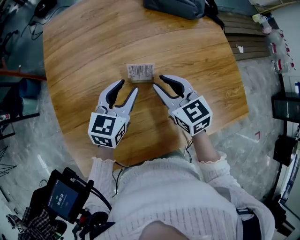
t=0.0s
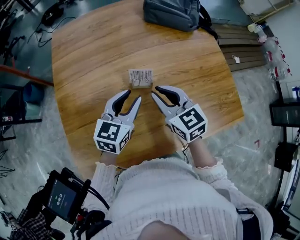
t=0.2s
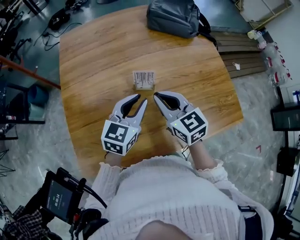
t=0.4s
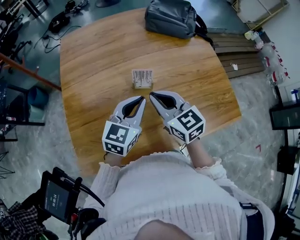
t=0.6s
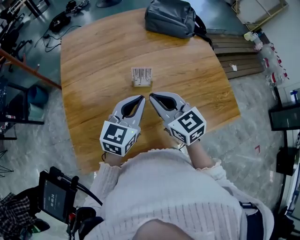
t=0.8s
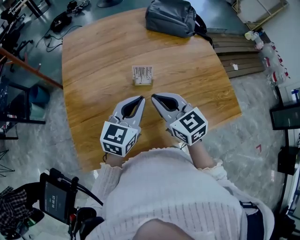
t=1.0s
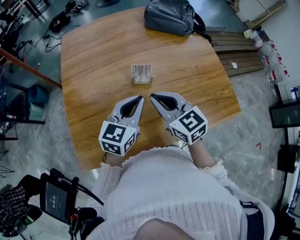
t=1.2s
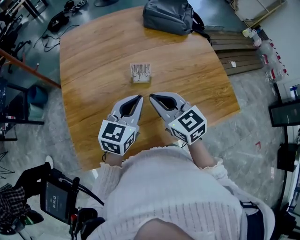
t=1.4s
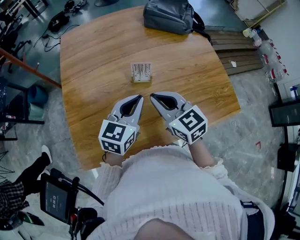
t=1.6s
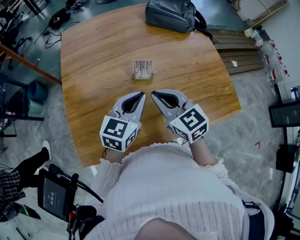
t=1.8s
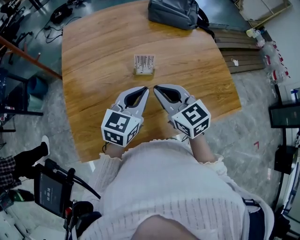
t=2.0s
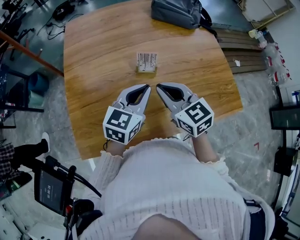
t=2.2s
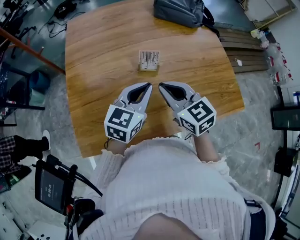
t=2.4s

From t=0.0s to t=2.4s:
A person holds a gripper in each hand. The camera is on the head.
From t=0.0s to t=1.2s: The grippers both shift backward and upward by some 10 cm. The left gripper closes up; the right gripper closes its fingers.
From t=1.2s to t=2.4s: Neither gripper changes place.

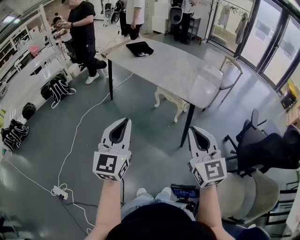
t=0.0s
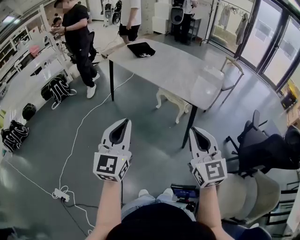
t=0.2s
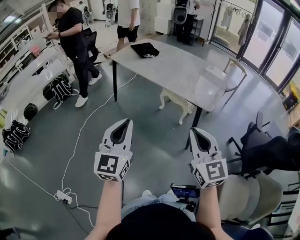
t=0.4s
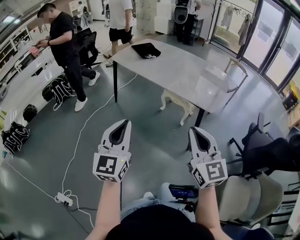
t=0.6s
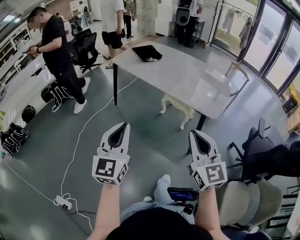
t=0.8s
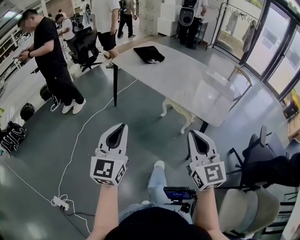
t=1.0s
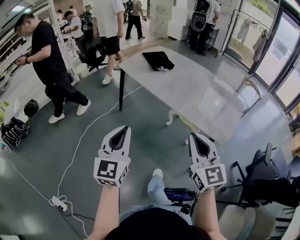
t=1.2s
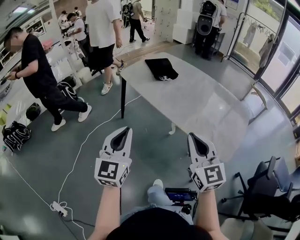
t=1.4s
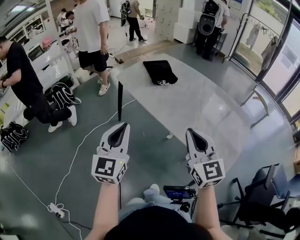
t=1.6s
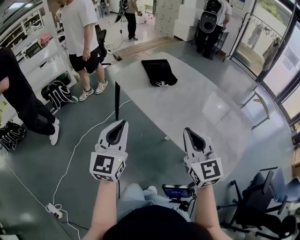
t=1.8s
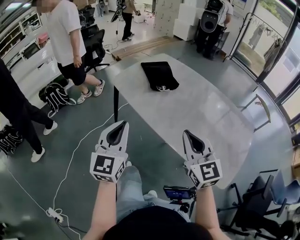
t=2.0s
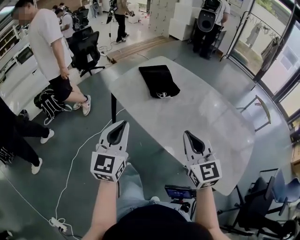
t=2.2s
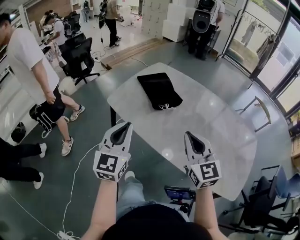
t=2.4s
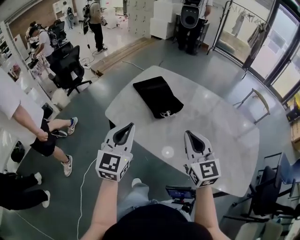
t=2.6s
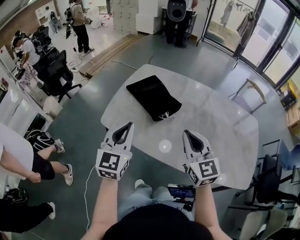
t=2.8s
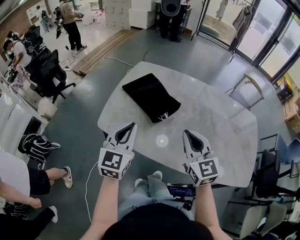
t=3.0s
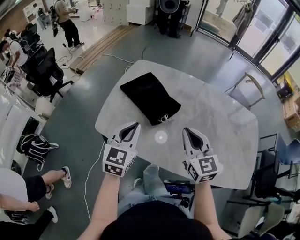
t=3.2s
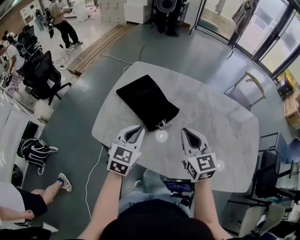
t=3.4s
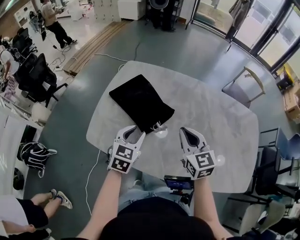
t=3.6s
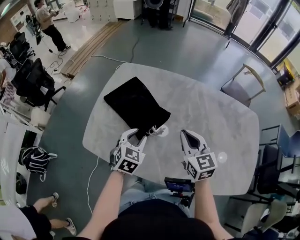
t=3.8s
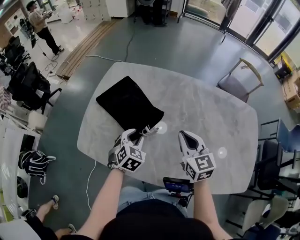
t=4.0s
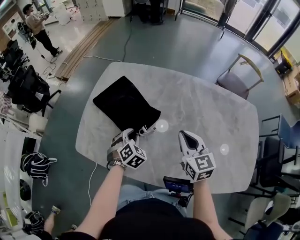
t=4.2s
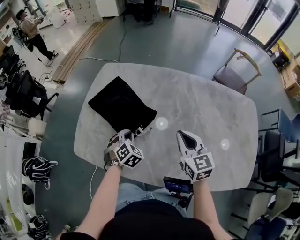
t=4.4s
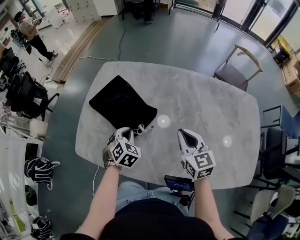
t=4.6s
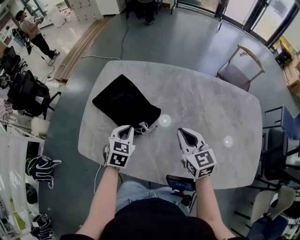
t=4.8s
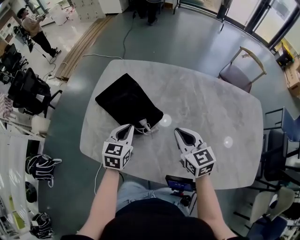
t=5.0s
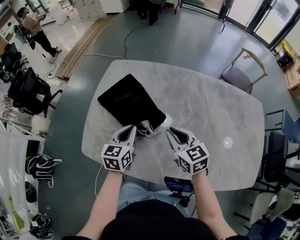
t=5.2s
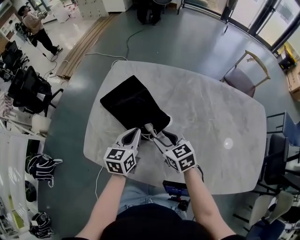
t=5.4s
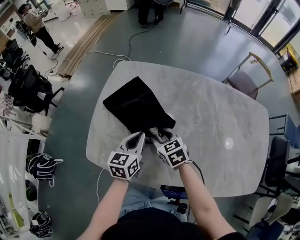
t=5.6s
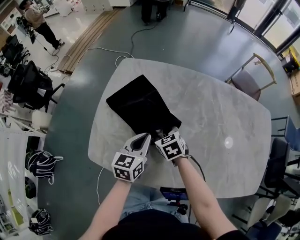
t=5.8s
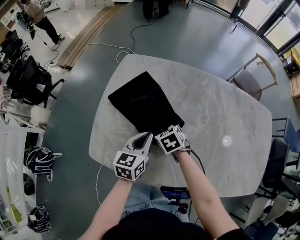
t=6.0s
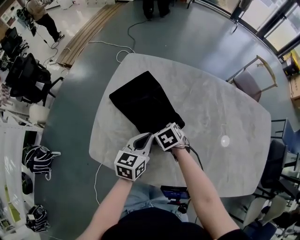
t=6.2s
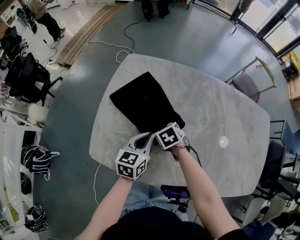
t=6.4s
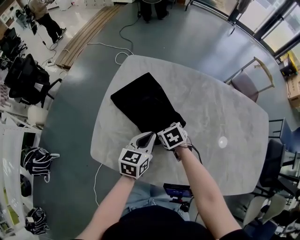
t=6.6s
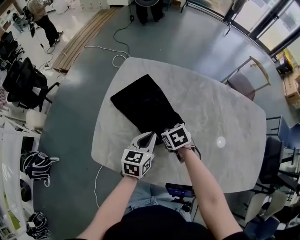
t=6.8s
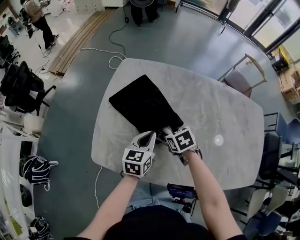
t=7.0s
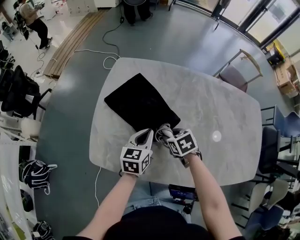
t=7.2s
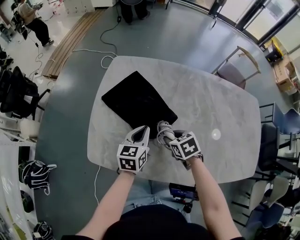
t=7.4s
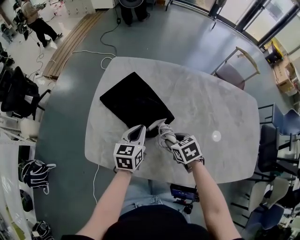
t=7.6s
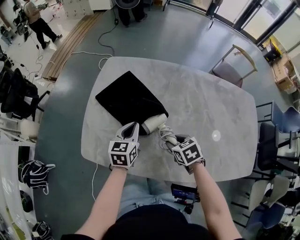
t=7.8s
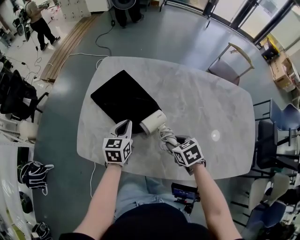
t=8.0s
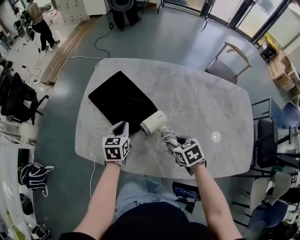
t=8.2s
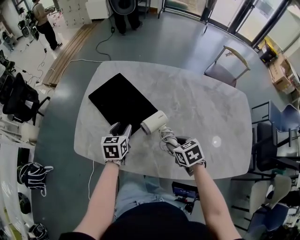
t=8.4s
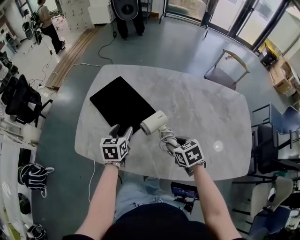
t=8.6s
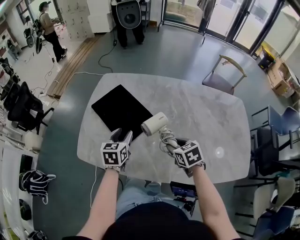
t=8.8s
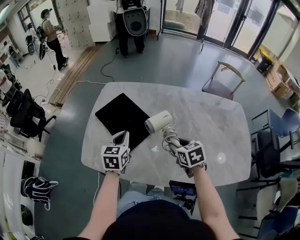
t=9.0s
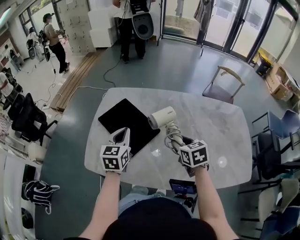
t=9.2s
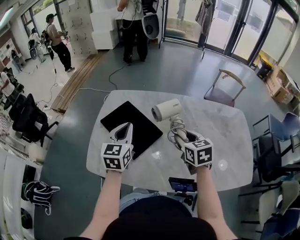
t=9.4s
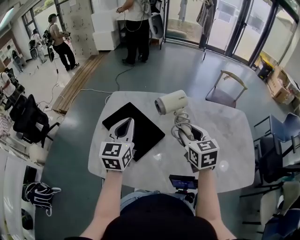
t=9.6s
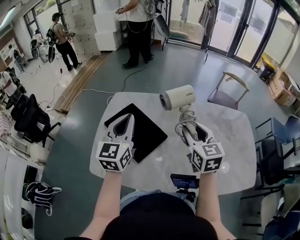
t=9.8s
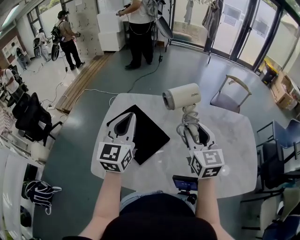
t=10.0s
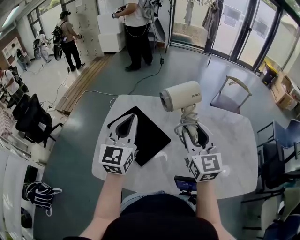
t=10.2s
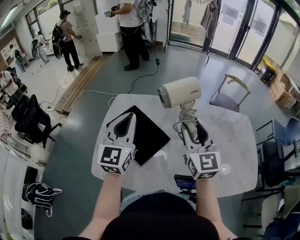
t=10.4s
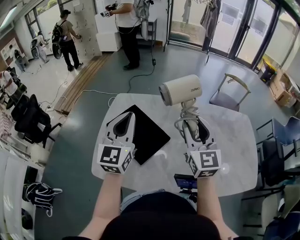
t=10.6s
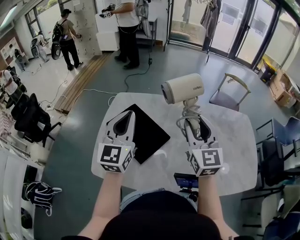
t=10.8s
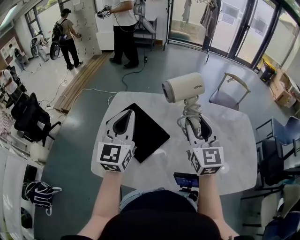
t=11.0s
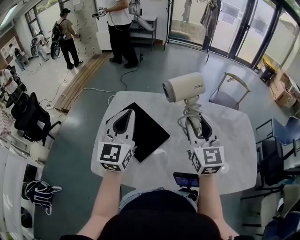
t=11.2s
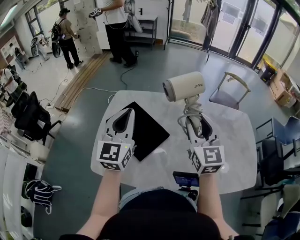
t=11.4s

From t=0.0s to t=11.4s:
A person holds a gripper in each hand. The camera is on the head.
From t=0.0s to t=1.4s: The two grippers go some 30 cm forward.
From t=1.4s to t=2.8s: The two grippers travel together, forward, approximately 40 cm. The left gripper changes its angle by about 20 degrees. The right gripper turns by about 20 degrees.
From t=2.8s to t=4.2s: The left gripper shifts approximately 30 cm downward and forward, points its fingers approximately 50 degrees further downward, and opens up, while the right gripper is displaced forward, downward and to the right by approximately 20 cm, and turns by about 20 degrees.
From t=4.2s to t=5.6s: The left gripper moves upward, roughly 10 cm, rolls counterclockwise, seen from behind, by some 50 degrees, and closes. The right gripper is displaced to the left and downward by approximately 20 cm, changes its angle by approximately 30 degrees, and opens its fingers.
From t=5.6s to t=7.2s: The right gripper turns by approximately 20 degrees.
From t=7.2s to t=8.6s: The left gripper opens its fingers; the right gripper is displaced to the right and backward by about 15 cm.
From t=8.6s to t=10.0s: The left gripper is displaced upward by some 25 cm, angles its fingers upward, by roughly 40 degrees, and closes its fingers; the right gripper heads upward and forward, covering roughly 25 cm, and points its fingers about 40 degrees further upward.
From t=10.0s to t=11.4s: The grippers make only small movements.

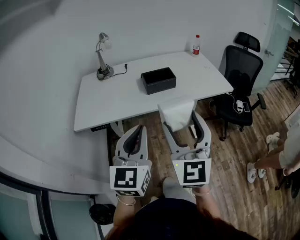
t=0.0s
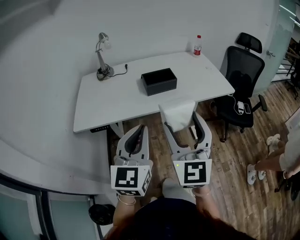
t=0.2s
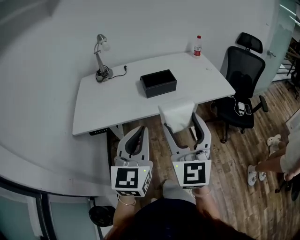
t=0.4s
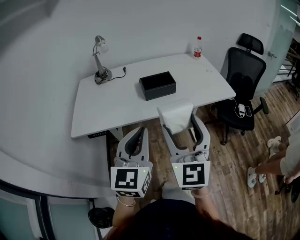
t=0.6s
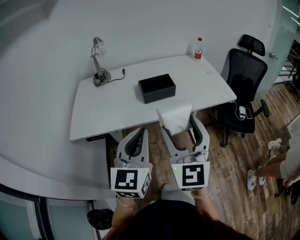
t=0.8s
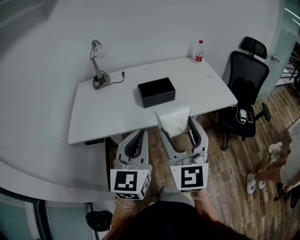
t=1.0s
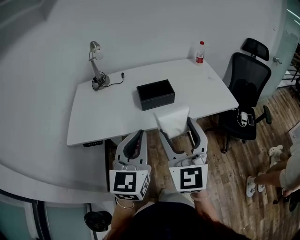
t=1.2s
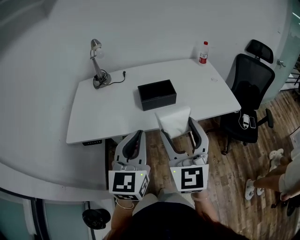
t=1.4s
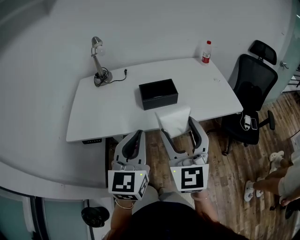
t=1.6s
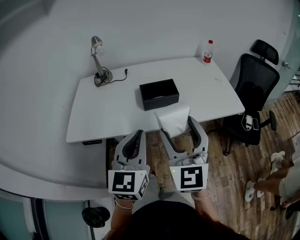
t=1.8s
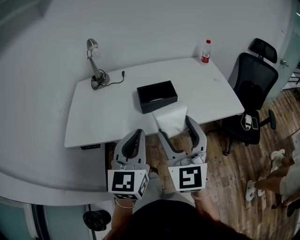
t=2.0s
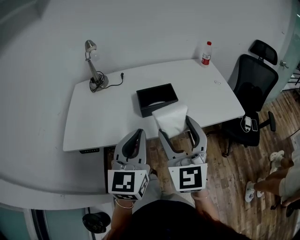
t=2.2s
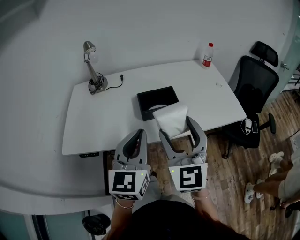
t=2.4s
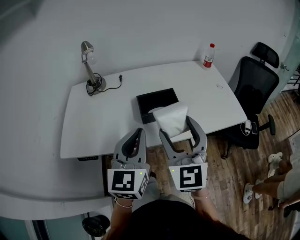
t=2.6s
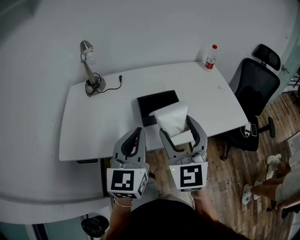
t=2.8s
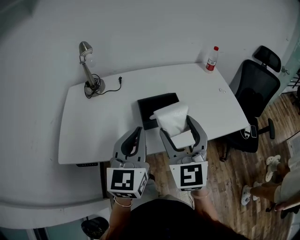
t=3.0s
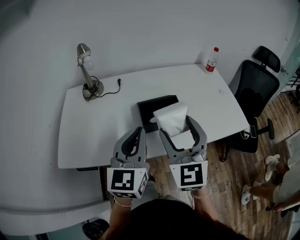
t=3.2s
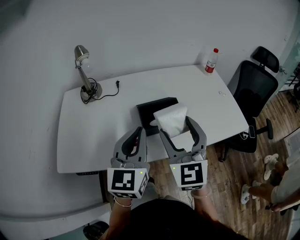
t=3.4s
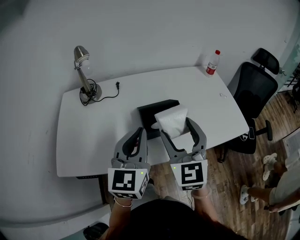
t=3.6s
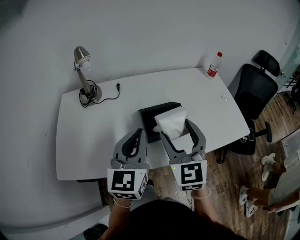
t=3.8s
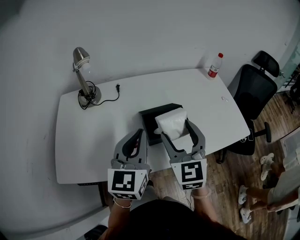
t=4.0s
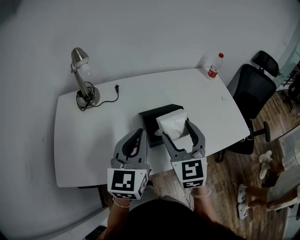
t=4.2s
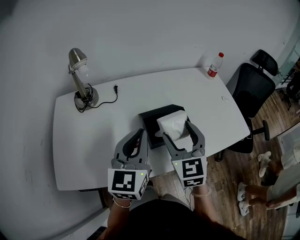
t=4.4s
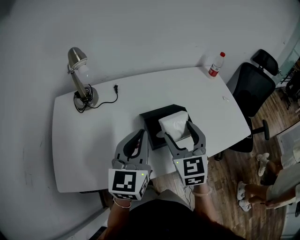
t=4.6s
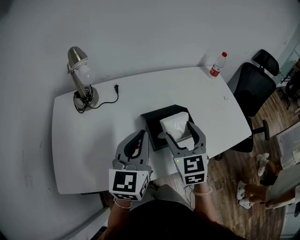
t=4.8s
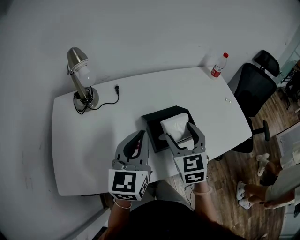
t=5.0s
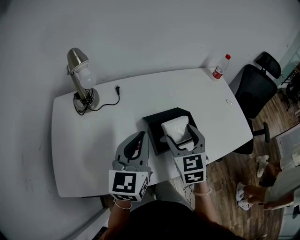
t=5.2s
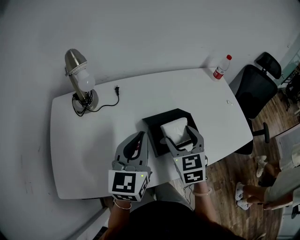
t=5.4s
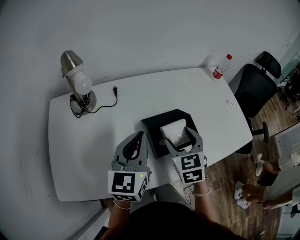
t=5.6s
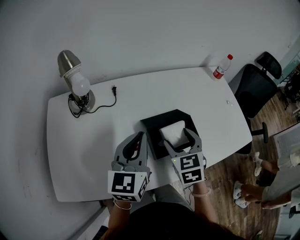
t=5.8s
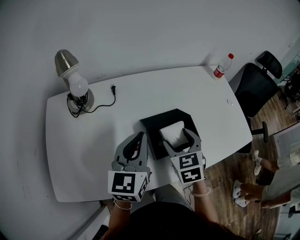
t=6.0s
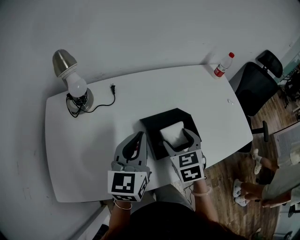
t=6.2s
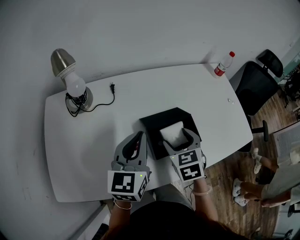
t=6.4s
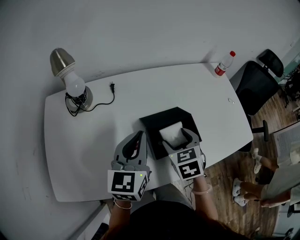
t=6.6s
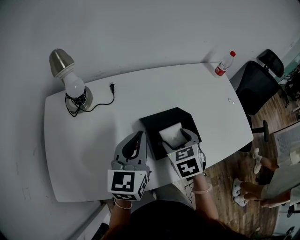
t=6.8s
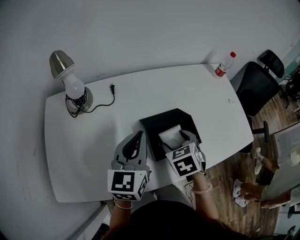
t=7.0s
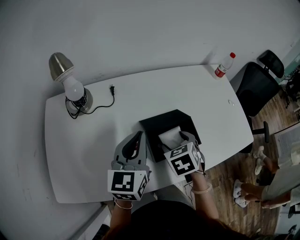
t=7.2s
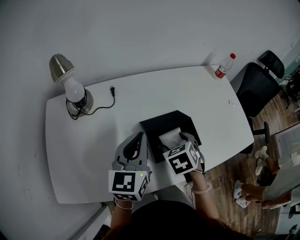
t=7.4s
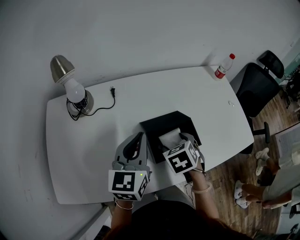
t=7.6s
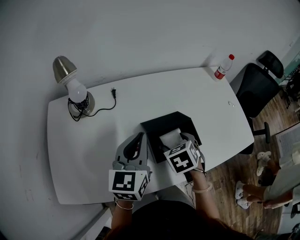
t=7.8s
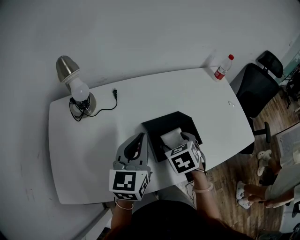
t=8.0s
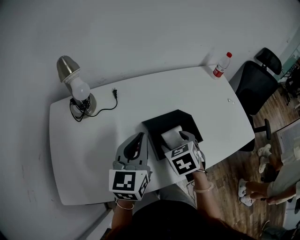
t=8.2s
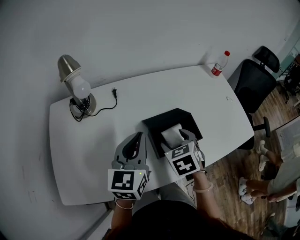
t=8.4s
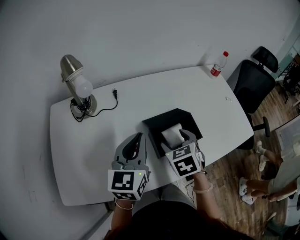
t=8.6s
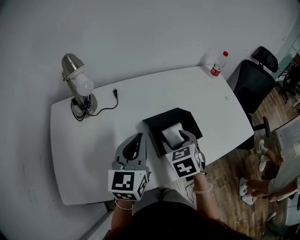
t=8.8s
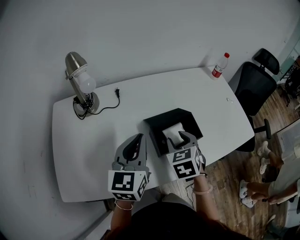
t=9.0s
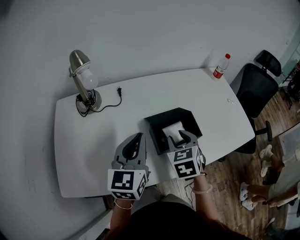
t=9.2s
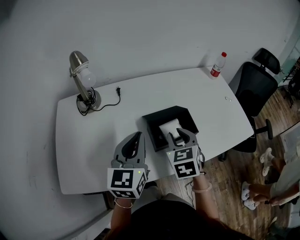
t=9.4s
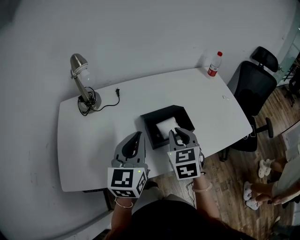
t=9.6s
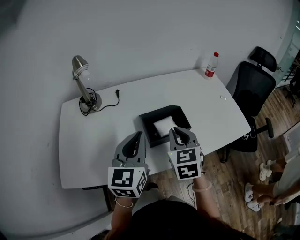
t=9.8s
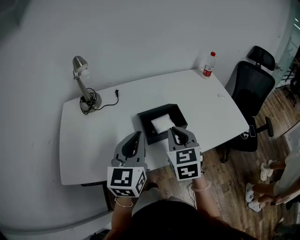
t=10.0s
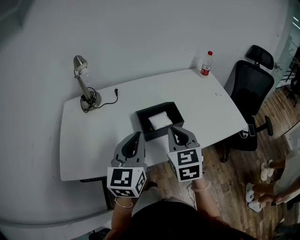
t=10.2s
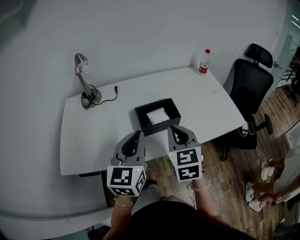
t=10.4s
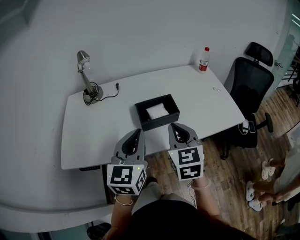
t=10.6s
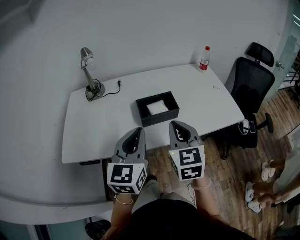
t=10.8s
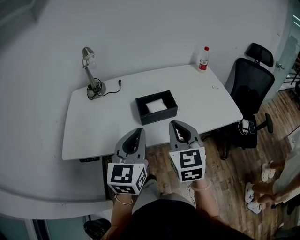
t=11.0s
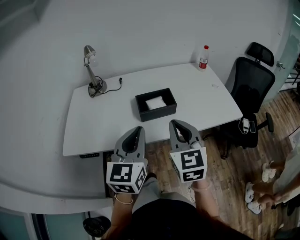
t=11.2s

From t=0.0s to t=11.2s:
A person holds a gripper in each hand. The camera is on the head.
From t=0.0s to t=1.6s: Both grippers move forward, about 15 cm.
From t=1.6s to t=3.2s: The grippers both shift forward by approximately 15 cm.
From t=3.2s to t=4.8s: The left gripper moves forward and to the left, approximately 10 cm, while the right gripper travels forward and downward by approximately 15 cm.
From t=4.8s to t=6.4s: The left gripper travels forward by about 5 cm. The right gripper heads downward, covering some 10 cm, and turns by about 20 degrees.
From t=6.4s to t=8.0s: The grippers stay close to where they were, moving slightly.
From t=8.0s to t=9.6s: The left gripper goes some 5 cm backward; the right gripper heads upward, covering roughly 10 cm, changes its angle by approximately 30 degrees, and closes its fingers.
From t=9.6s to t=11.2s: The left gripper travels backward and to the right by some 20 cm, while the right gripper moves backward, upward and to the right, some 20 cm, and rotates roughly 20 degrees.
